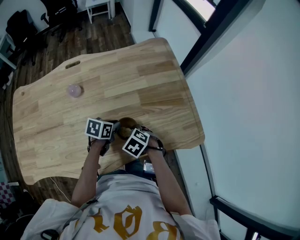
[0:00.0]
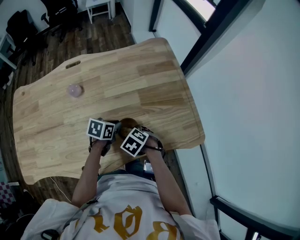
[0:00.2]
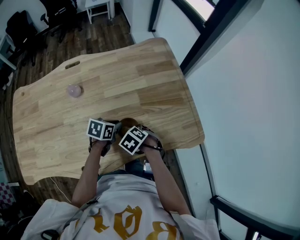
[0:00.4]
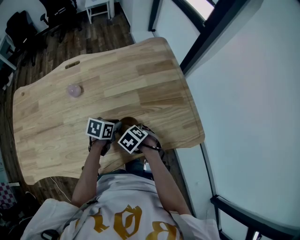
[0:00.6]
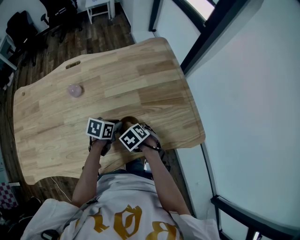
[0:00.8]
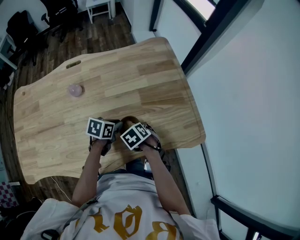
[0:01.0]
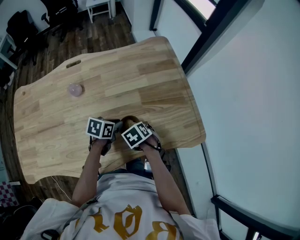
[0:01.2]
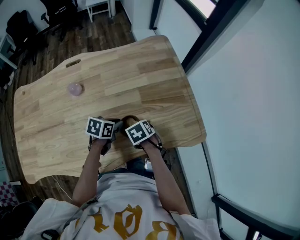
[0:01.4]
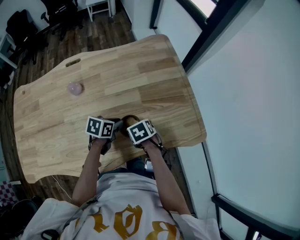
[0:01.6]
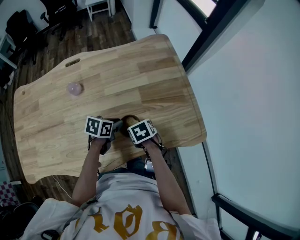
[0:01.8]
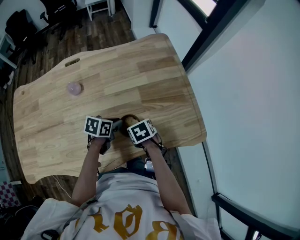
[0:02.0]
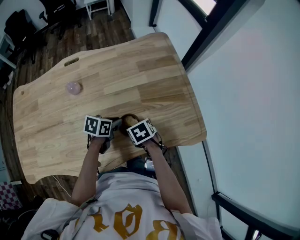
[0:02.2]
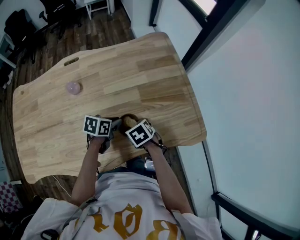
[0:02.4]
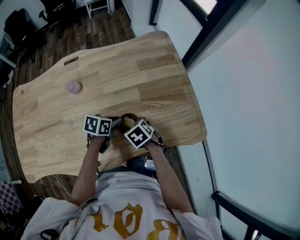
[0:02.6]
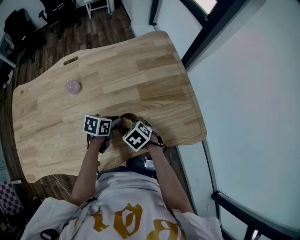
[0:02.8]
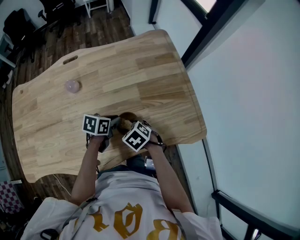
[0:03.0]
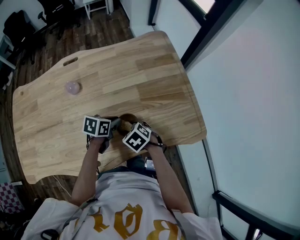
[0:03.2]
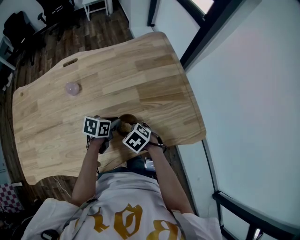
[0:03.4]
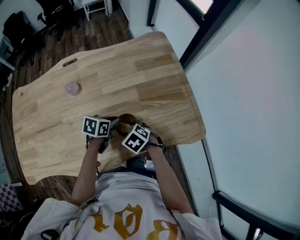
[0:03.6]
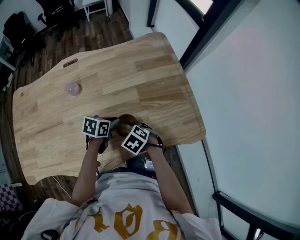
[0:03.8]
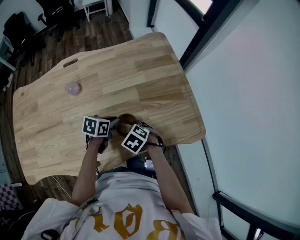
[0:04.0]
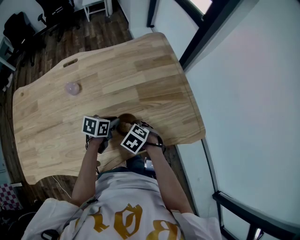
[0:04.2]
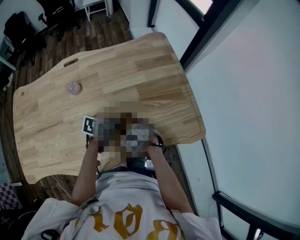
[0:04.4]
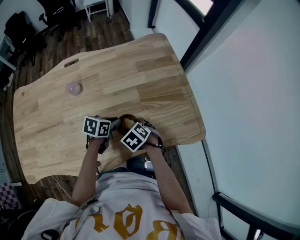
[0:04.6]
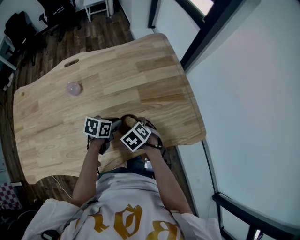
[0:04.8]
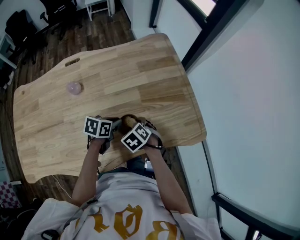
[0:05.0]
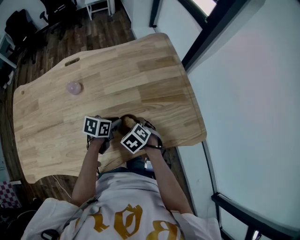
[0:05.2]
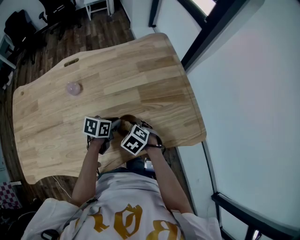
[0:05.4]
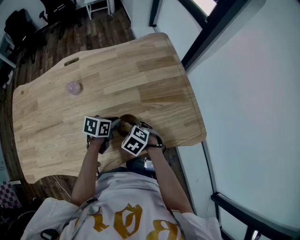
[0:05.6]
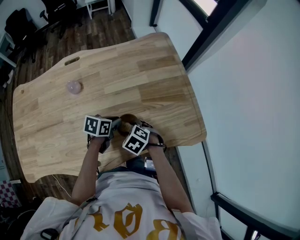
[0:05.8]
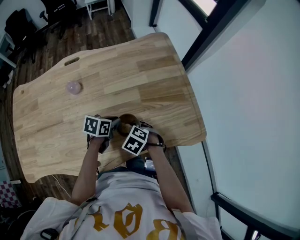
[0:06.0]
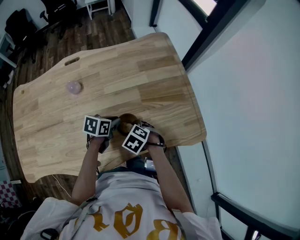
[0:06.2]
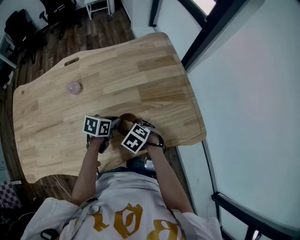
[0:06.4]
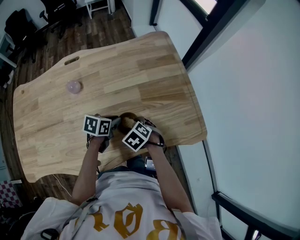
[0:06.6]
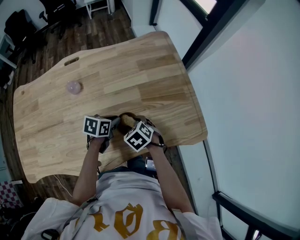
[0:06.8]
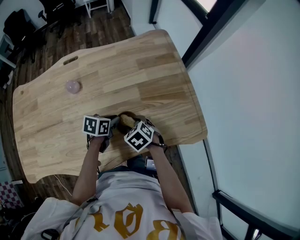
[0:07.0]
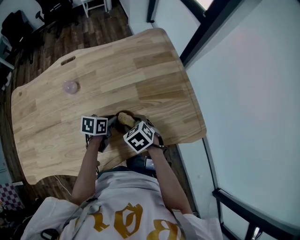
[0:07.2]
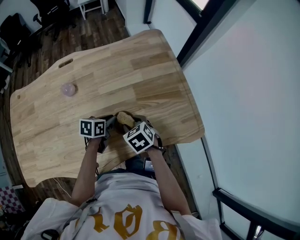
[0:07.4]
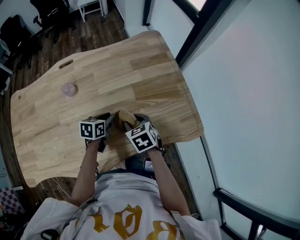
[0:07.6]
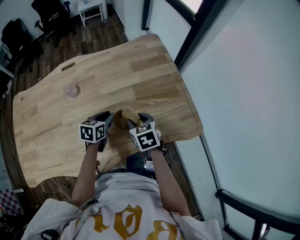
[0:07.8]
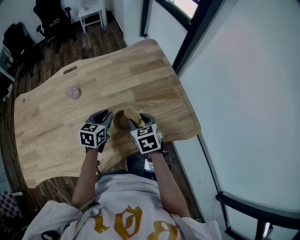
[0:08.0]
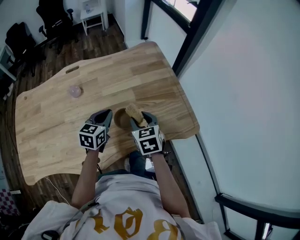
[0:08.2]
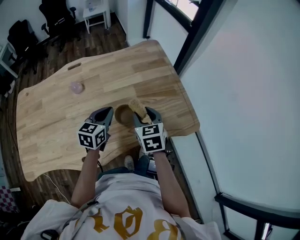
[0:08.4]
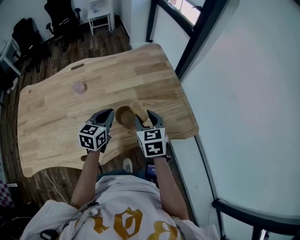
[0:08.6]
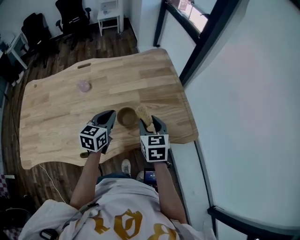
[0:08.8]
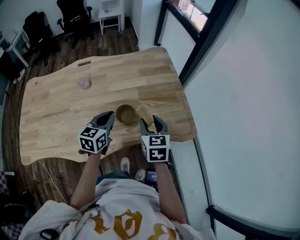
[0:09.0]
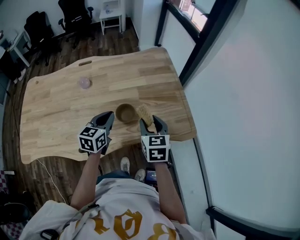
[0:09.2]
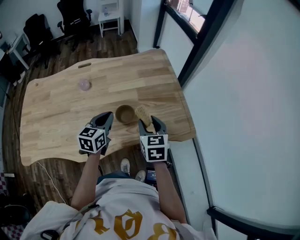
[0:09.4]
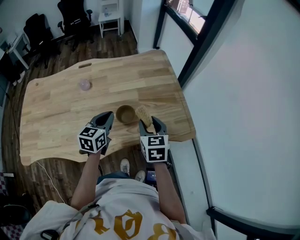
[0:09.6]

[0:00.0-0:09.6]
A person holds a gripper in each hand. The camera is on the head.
0:00.0 to 0:01.6: The right gripper rotates some 30 degrees.
0:01.6 to 0:03.2: The right gripper changes its angle by some 20 degrees.
0:03.2 to 0:06.4: The grippers make only small movements.
0:06.4 to 0:08.0: Both grippers travel together upward, roughly 10 cm. The right gripper swivels some 40 degrees, while the left gripper changes its angle by some 30 degrees.
0:08.0 to 0:09.6: The right gripper shifts about 10 cm upward, backward and to the right, while the left gripper goes roughly 10 cm upward and backward.

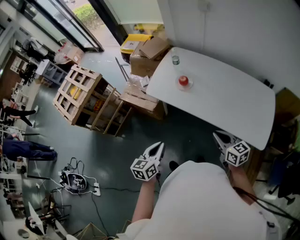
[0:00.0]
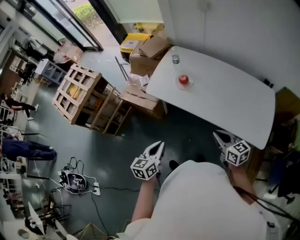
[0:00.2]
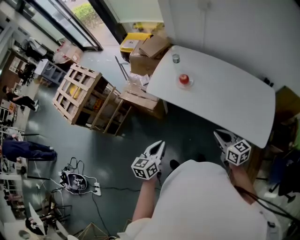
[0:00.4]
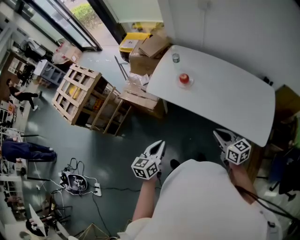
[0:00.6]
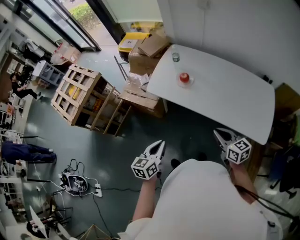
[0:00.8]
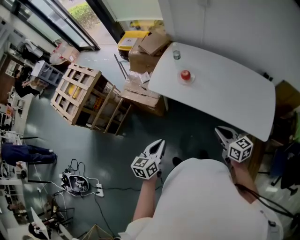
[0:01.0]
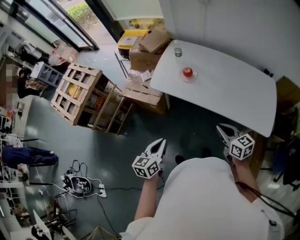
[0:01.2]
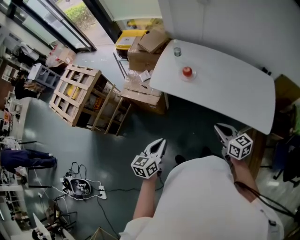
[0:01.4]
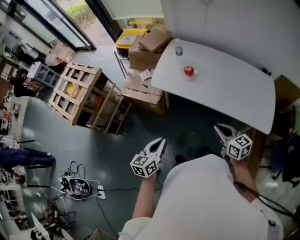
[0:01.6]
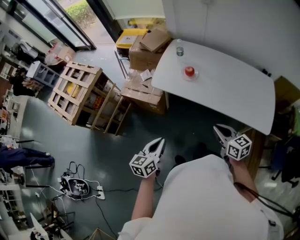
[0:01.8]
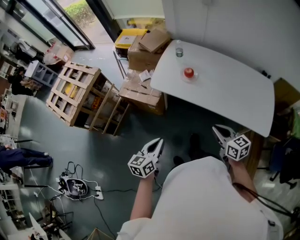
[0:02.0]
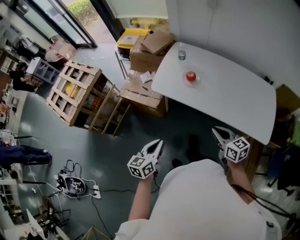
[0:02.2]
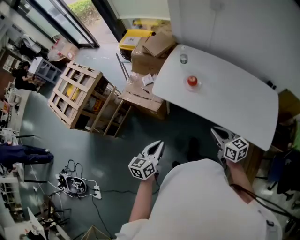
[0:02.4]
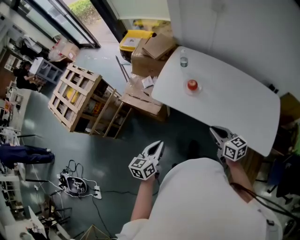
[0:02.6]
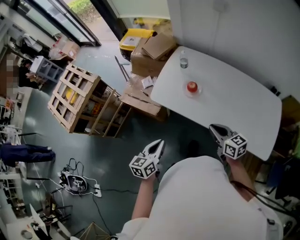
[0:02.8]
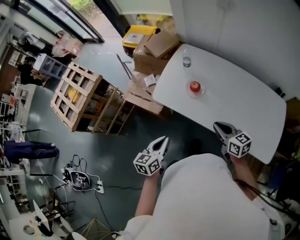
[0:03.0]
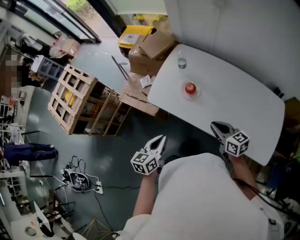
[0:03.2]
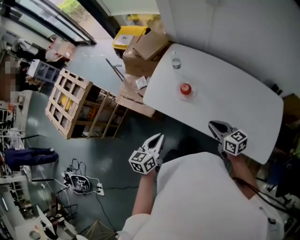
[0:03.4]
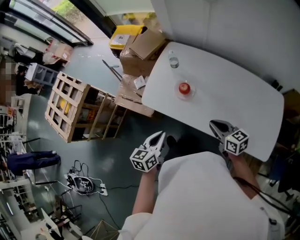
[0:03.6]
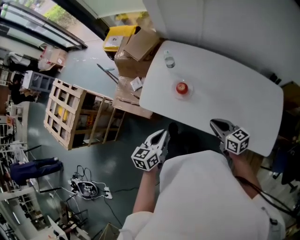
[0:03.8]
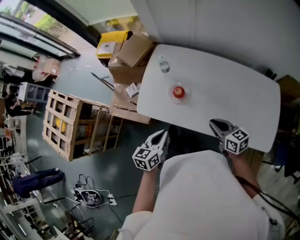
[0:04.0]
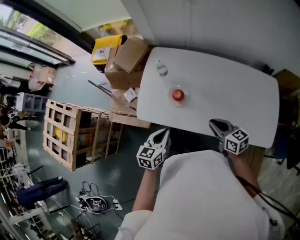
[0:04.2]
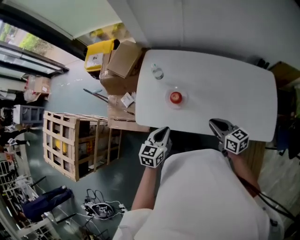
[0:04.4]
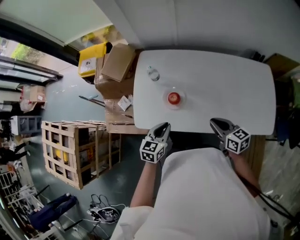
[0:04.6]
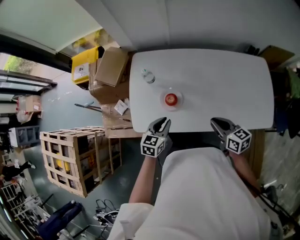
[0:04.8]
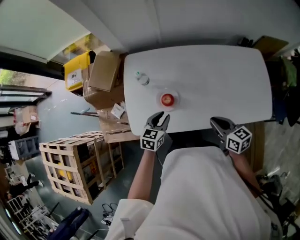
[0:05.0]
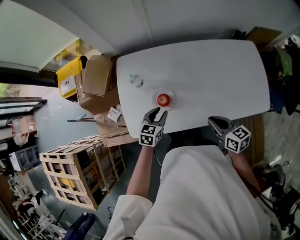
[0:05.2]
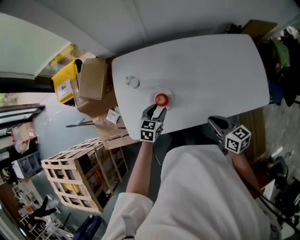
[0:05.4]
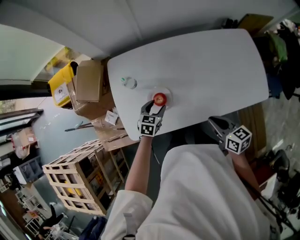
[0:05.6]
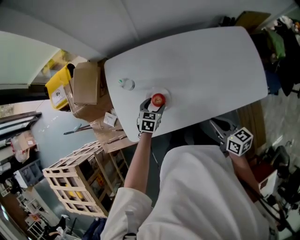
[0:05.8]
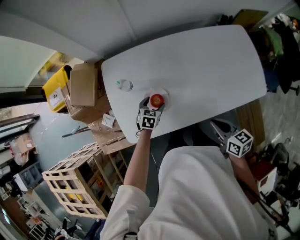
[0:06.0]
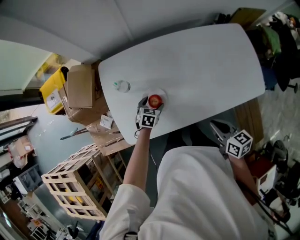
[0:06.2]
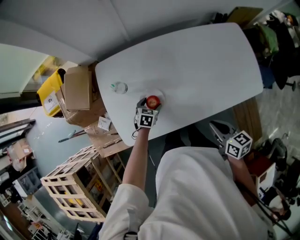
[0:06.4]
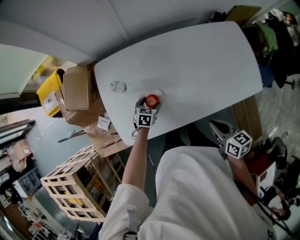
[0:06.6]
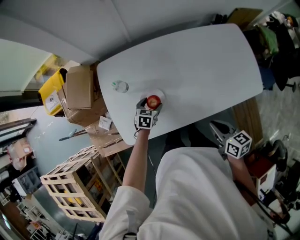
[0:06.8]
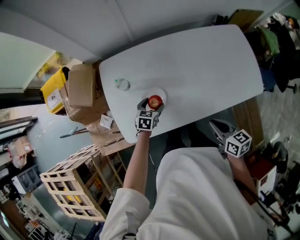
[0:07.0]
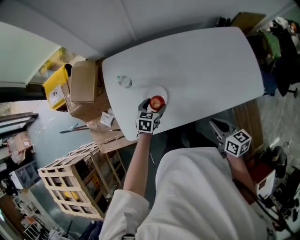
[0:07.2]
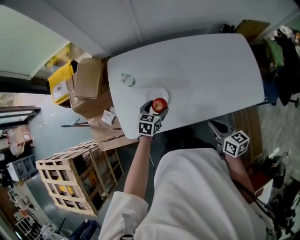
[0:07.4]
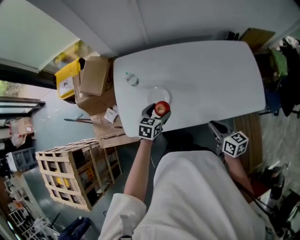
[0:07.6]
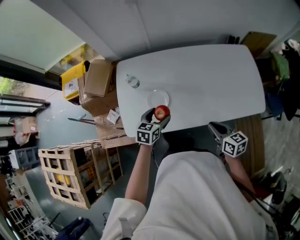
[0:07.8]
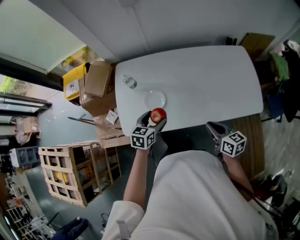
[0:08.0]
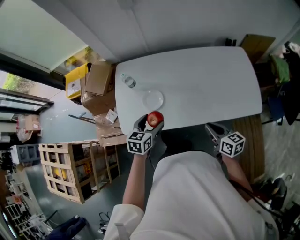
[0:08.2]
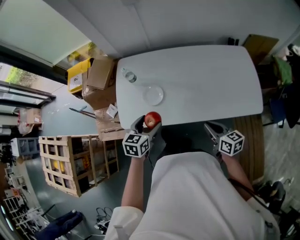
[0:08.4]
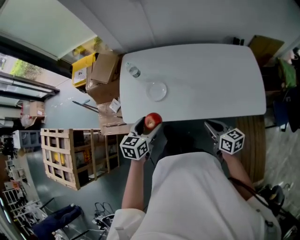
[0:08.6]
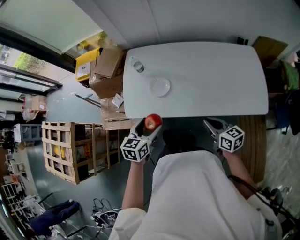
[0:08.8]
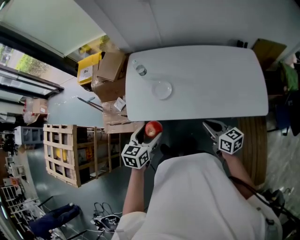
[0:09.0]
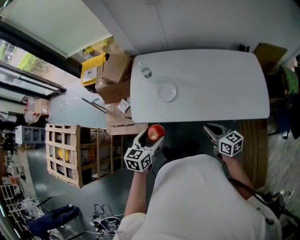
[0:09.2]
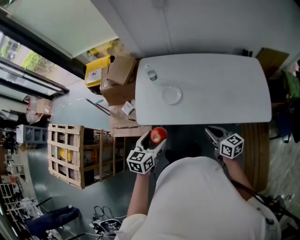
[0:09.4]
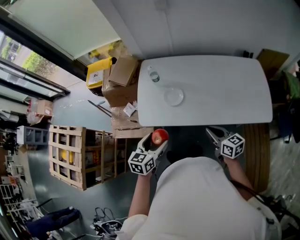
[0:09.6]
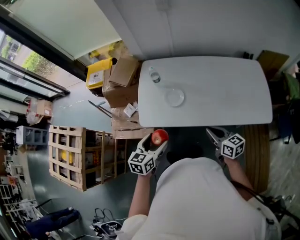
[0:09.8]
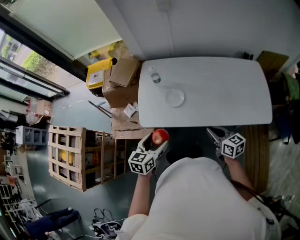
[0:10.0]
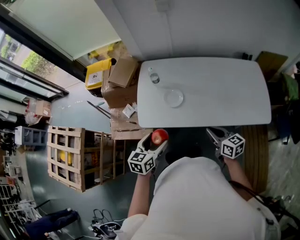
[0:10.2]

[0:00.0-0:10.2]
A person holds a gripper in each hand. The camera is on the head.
0:00.0 to 0:01.4: The two grippers go about 10 cm to the left.
0:01.4 to 0:03.0: The two grippers go roughly 20 cm forward.
0:03.0 to 0:04.4: The right gripper travels forward by about 10 cm; the left gripper shifts approximately 20 cm forward, and turns by approximately 30 degrees.
0:04.4 to 0:05.8: The left gripper travels forward and downward by approximately 25 cm, turns by some 30 degrees, and opens up; the right gripper rotates about 30 degrees.
0:05.8 to 0:07.2: The left gripper goes downward and returns, roughly 5 cm each way.
0:07.2 to 0:08.8: The left gripper is displaced backward and upward by about 30 cm, and turns by about 20 degrees, while the right gripper is displaced backward by some 5 cm, and changes its angle by some 20 degrees.
0:08.8 to 0:10.2: The two grippers go some 5 cm to the left.

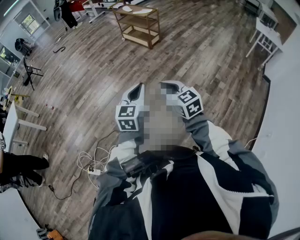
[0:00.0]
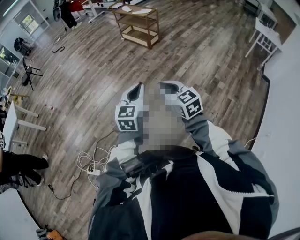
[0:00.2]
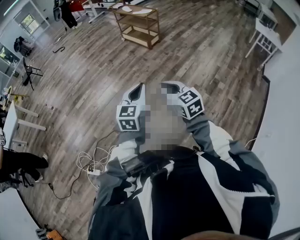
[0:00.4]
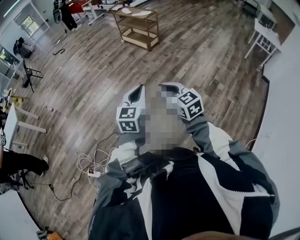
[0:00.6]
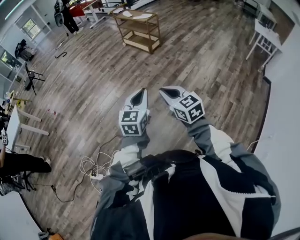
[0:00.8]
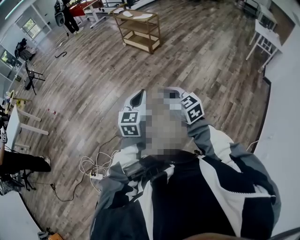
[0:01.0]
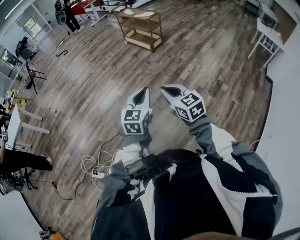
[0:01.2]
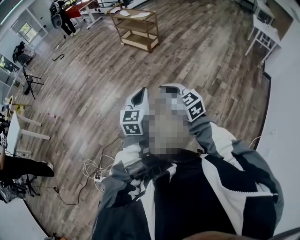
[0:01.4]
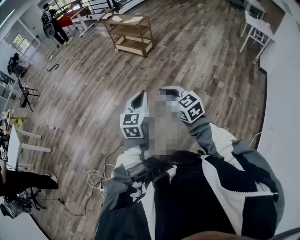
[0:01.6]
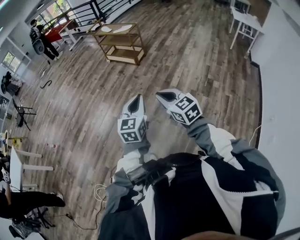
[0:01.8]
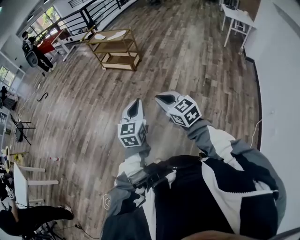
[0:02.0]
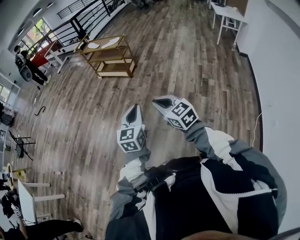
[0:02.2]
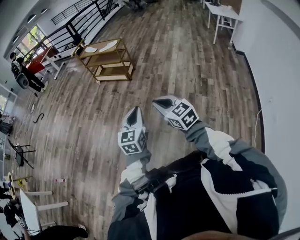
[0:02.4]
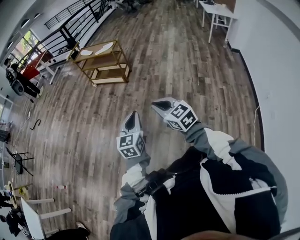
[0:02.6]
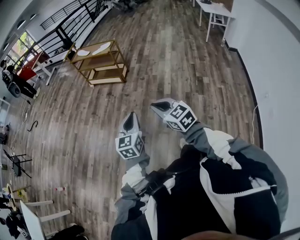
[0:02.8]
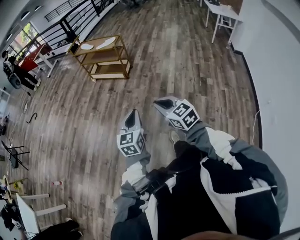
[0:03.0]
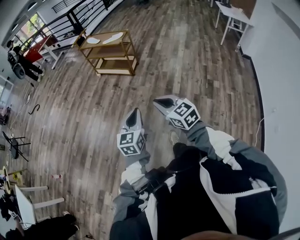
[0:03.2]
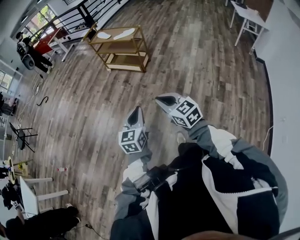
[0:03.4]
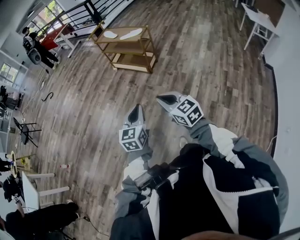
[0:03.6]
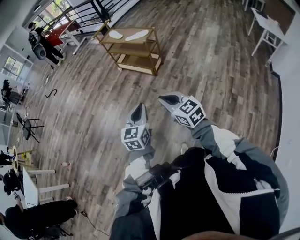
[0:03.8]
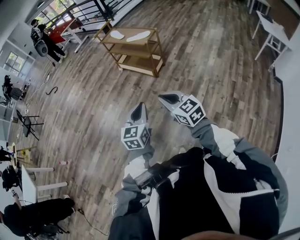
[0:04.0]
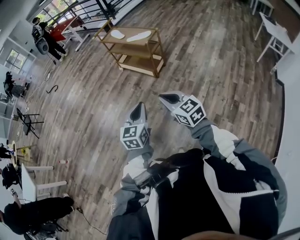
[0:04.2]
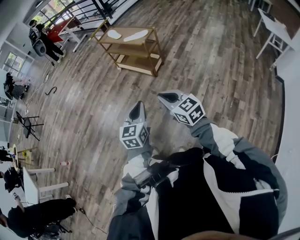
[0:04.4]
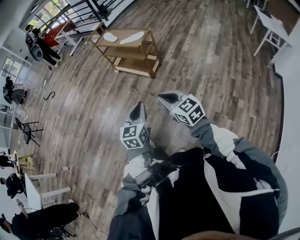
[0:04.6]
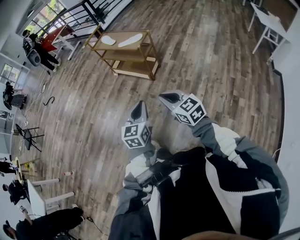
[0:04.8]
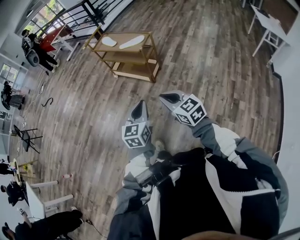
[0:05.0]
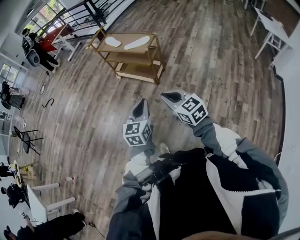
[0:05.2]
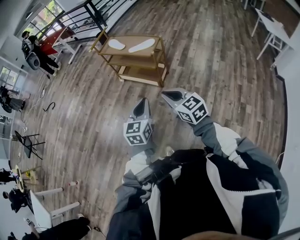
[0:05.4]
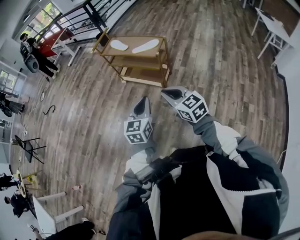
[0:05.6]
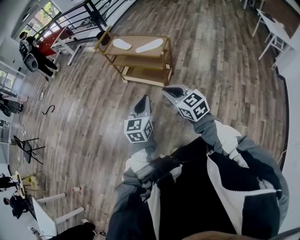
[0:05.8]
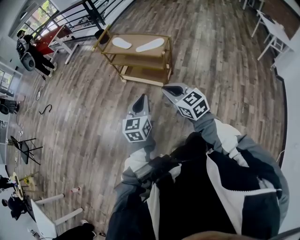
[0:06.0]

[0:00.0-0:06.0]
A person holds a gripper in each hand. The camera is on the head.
0:00.0 to 0:01.6: The grippers both shift forward by about 5 cm.
0:01.6 to 0:03.0: Both grippers travel together forward and to the left, some 25 cm.
0:03.0 to 0:04.4: Both grippers move forward, some 30 cm.
0:04.4 to 0:06.0: The two grippers go approximately 30 cm forward and to the left.
